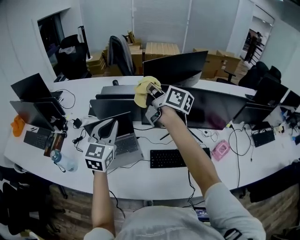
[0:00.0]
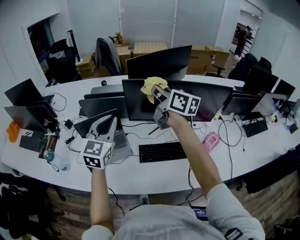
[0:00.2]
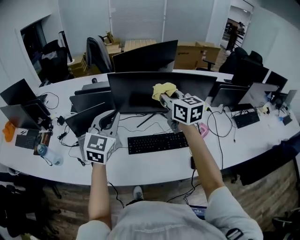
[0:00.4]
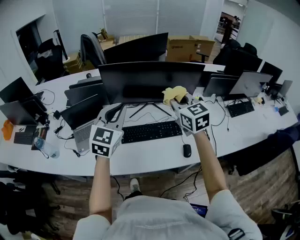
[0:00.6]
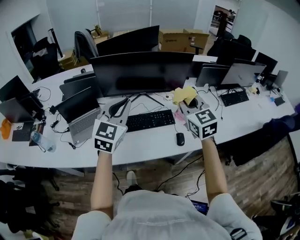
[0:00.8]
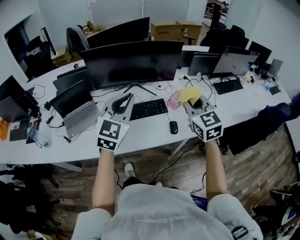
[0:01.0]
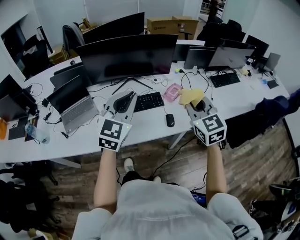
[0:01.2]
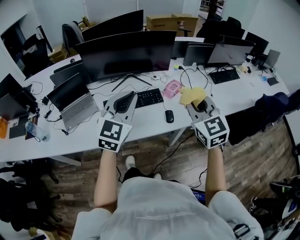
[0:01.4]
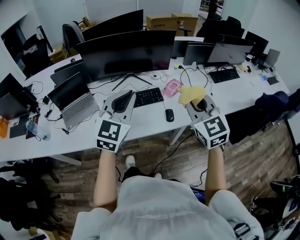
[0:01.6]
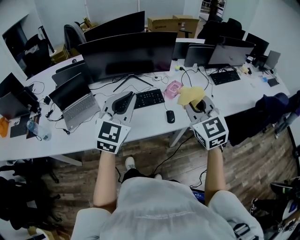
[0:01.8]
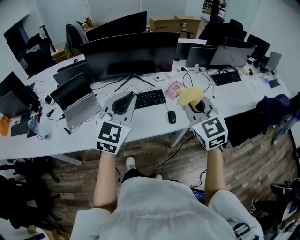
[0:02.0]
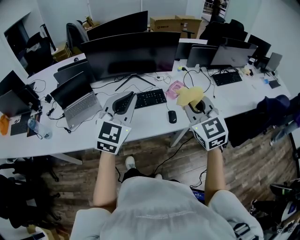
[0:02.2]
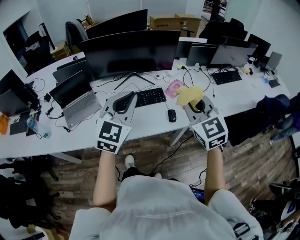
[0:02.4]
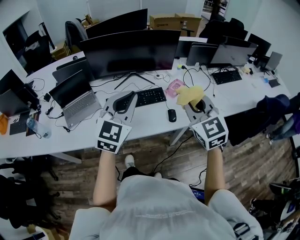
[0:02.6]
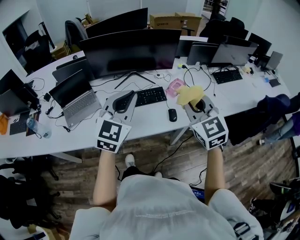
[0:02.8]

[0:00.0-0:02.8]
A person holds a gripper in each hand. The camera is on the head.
0:00.0 to 0:01.4: The two grippers travel together, approximately 50 cm. The left gripper rotates roughly 30 degrees, while the right gripper twists about 70 degrees counterclockwise, seen from behind.
0:01.4 to 0:02.8: There are only small adjustments of the grippers.

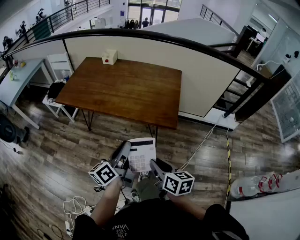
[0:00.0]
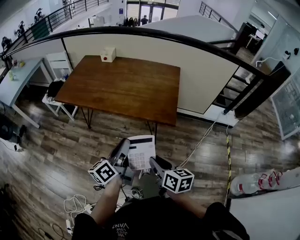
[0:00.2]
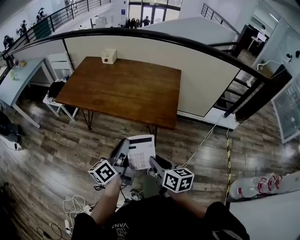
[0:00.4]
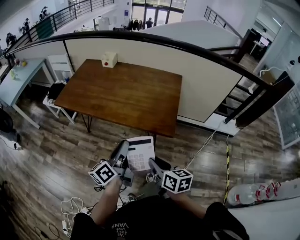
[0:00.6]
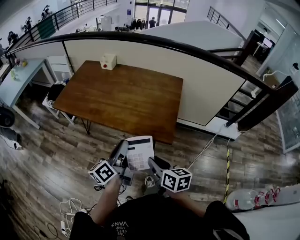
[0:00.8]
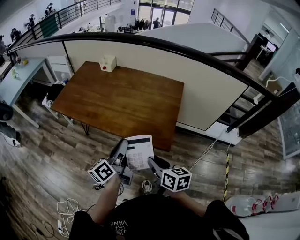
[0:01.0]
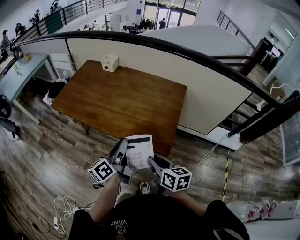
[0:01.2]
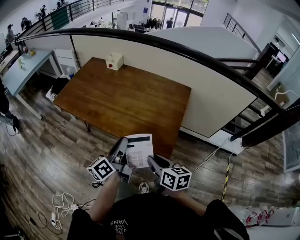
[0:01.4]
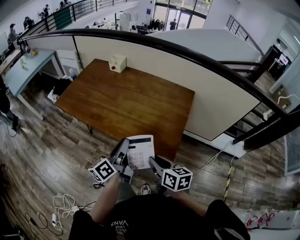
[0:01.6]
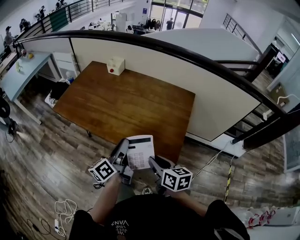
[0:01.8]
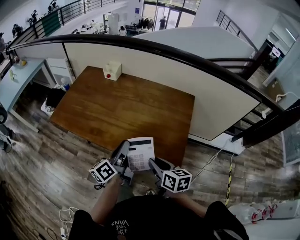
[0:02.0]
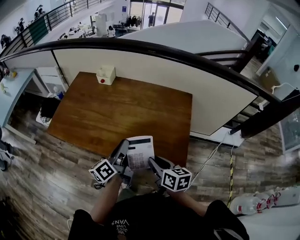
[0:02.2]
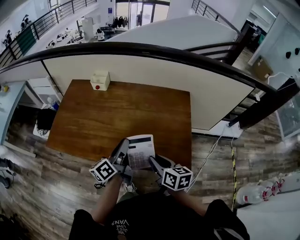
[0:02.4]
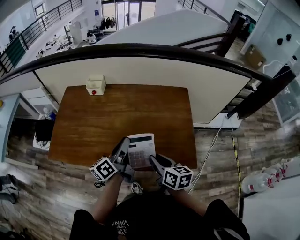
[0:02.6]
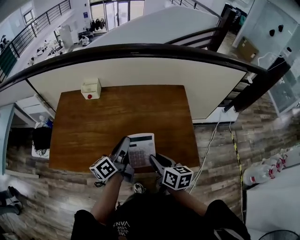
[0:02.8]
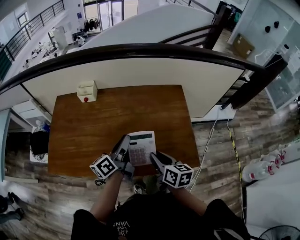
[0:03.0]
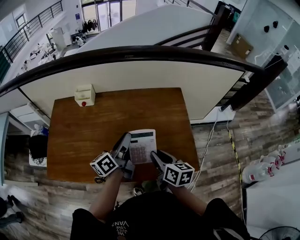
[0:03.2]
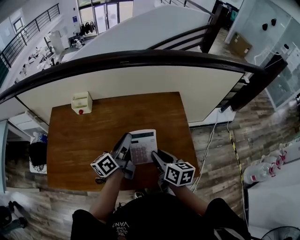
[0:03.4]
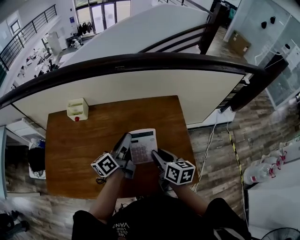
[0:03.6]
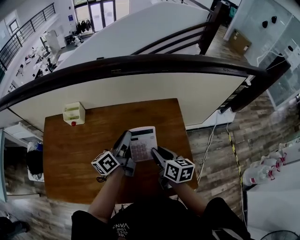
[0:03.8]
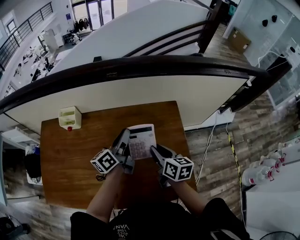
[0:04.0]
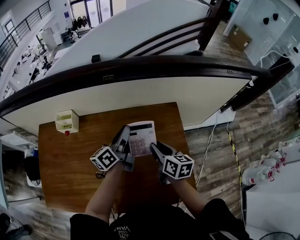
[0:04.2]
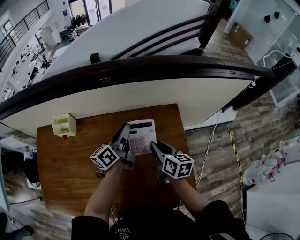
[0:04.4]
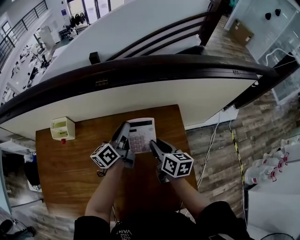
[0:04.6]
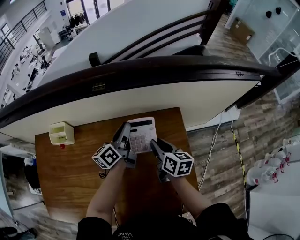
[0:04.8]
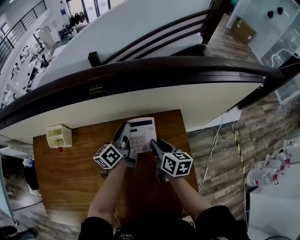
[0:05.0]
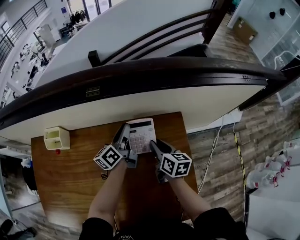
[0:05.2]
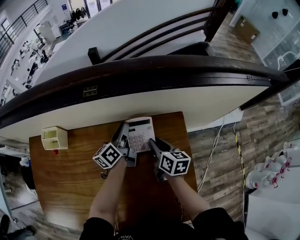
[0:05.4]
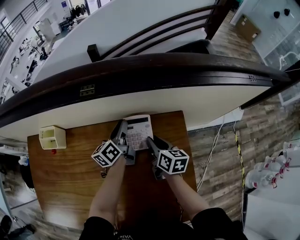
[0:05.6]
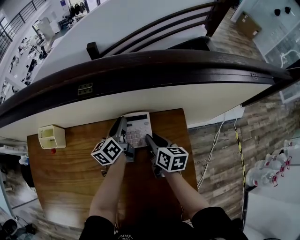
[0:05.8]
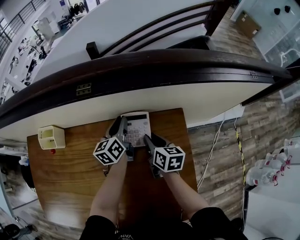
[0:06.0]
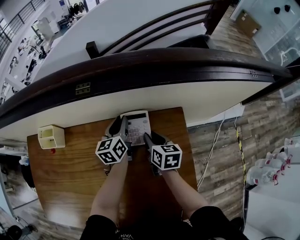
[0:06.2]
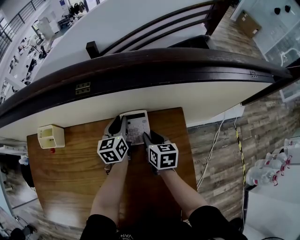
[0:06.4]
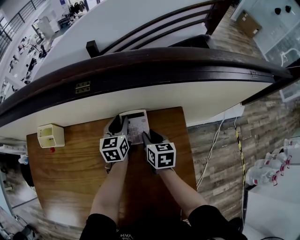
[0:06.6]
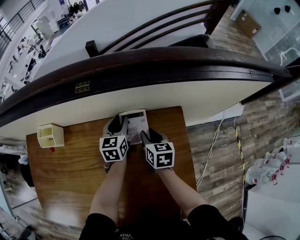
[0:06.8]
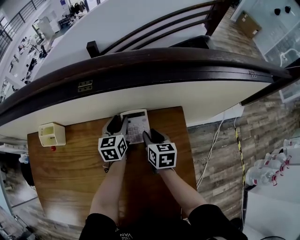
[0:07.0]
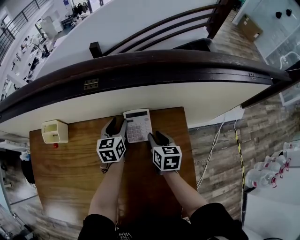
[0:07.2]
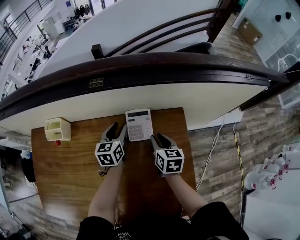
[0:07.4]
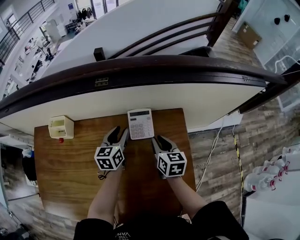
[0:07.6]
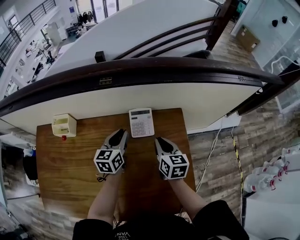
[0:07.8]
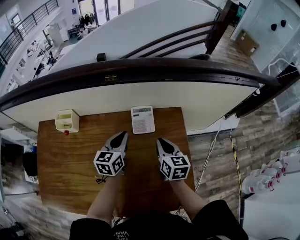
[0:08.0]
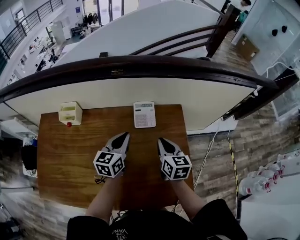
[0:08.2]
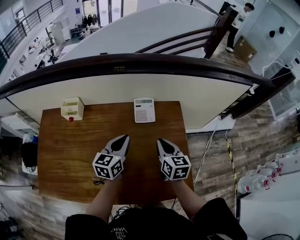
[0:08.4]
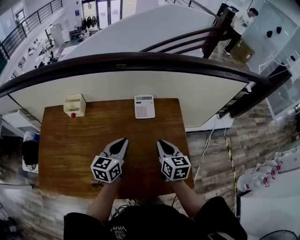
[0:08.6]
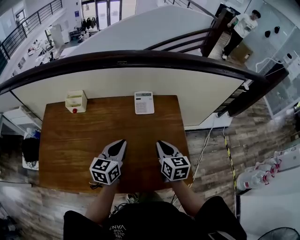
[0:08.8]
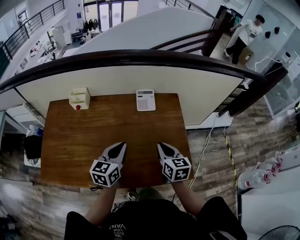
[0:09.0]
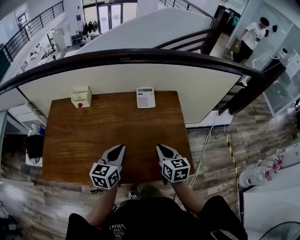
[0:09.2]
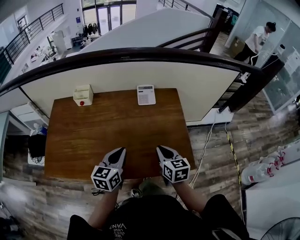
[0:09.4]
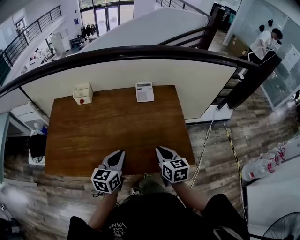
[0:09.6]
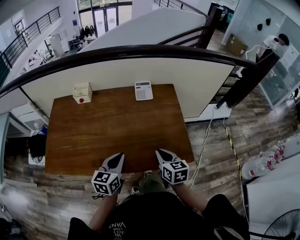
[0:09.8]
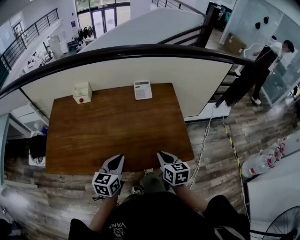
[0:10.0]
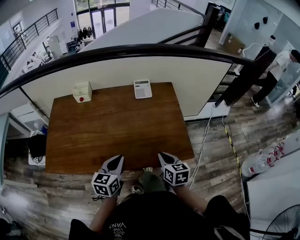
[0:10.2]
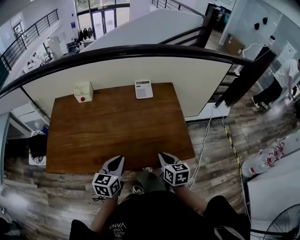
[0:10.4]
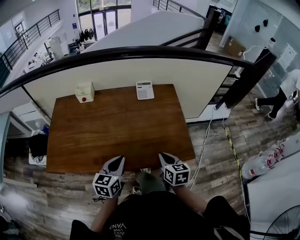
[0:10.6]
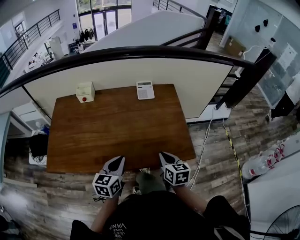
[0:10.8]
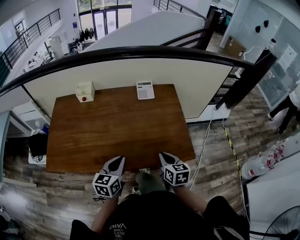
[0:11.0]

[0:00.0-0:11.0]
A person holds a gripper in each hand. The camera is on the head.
0:00.0 to 0:01.6: Both grippers travel together forward, approximately 20 cm.
0:01.6 to 0:03.2: The left gripper ends up approximately 30 cm from where it was, and swivels some 30 degrees; the right gripper shifts by about 25 cm, and turns by about 30 degrees.
0:03.2 to 0:04.8: The two grippers go approximately 30 cm forward.
0:04.8 to 0:06.2: The two grippers go about 10 cm downward and forward. The left gripper turns by approximately 30 degrees.
0:06.2 to 0:07.8: The right gripper moves upward and backward, some 10 cm, while the left gripper goes approximately 10 cm backward and upward, and opens, then closes again.
0:07.8 to 0:09.4: Both grippers travel together backward, about 30 cm.
0:09.4 to 0:11.0: The grippers both shift backward by roughly 10 cm.

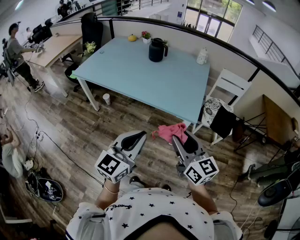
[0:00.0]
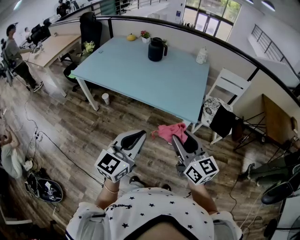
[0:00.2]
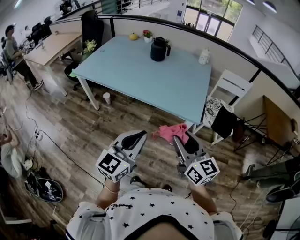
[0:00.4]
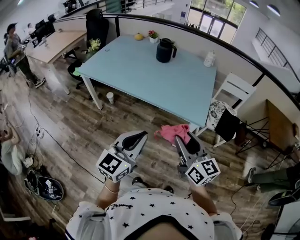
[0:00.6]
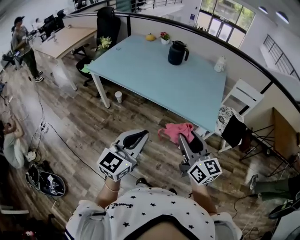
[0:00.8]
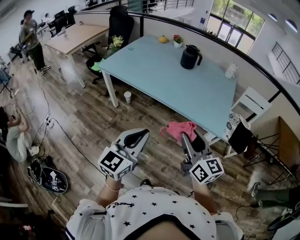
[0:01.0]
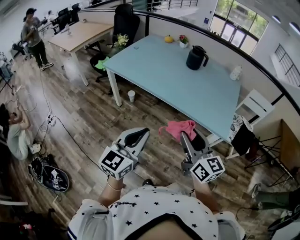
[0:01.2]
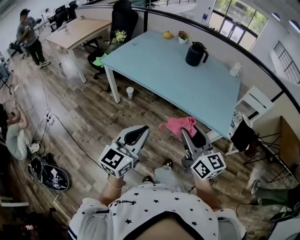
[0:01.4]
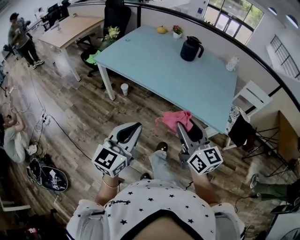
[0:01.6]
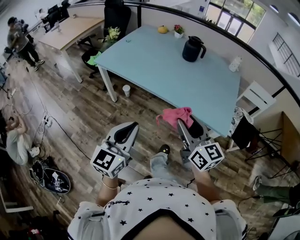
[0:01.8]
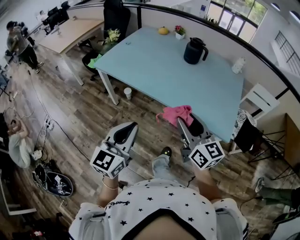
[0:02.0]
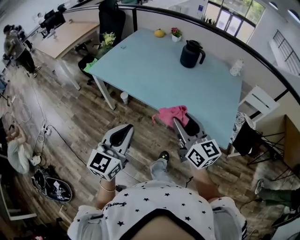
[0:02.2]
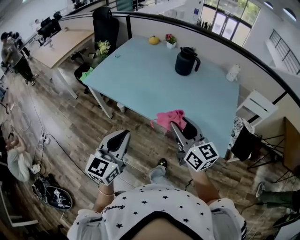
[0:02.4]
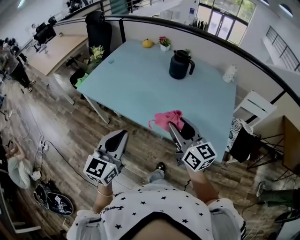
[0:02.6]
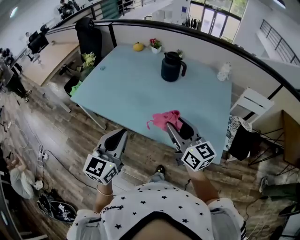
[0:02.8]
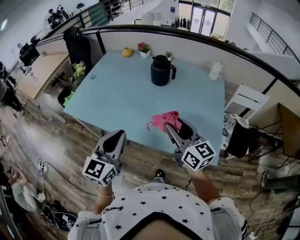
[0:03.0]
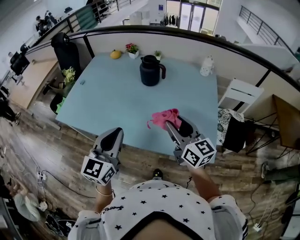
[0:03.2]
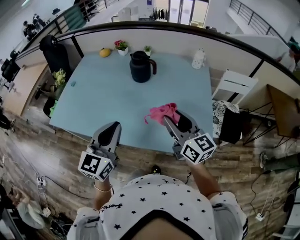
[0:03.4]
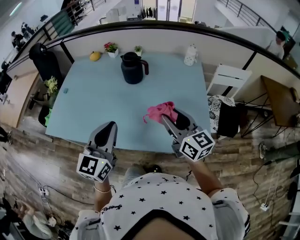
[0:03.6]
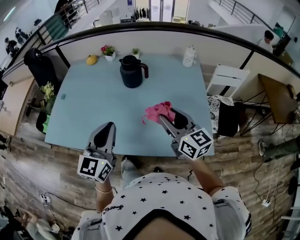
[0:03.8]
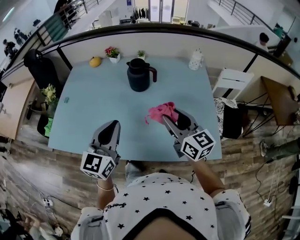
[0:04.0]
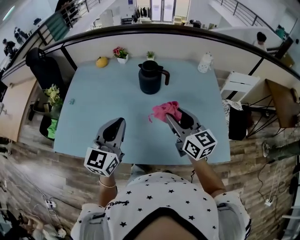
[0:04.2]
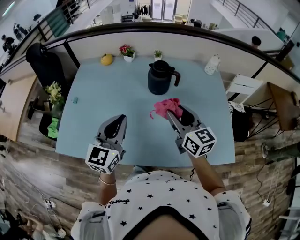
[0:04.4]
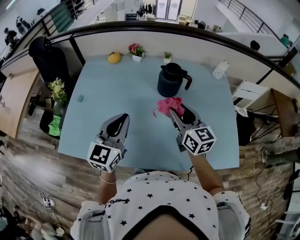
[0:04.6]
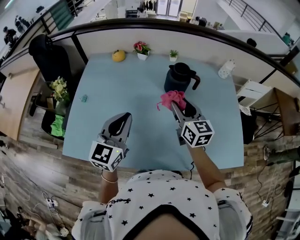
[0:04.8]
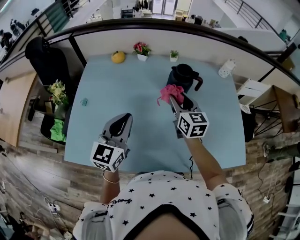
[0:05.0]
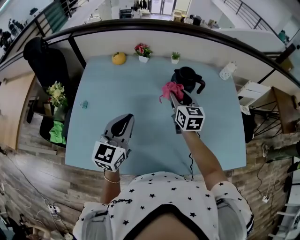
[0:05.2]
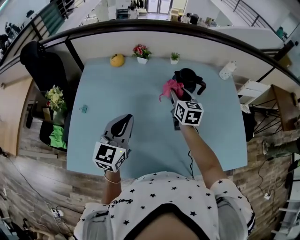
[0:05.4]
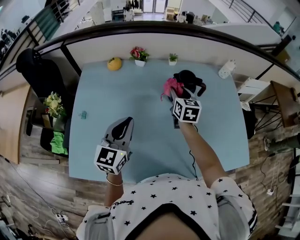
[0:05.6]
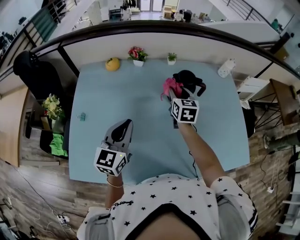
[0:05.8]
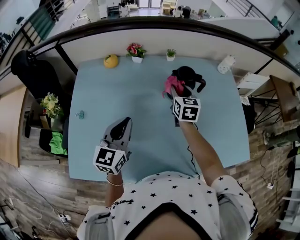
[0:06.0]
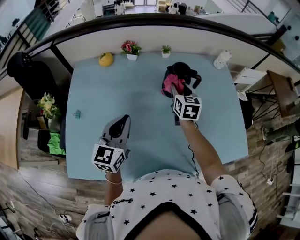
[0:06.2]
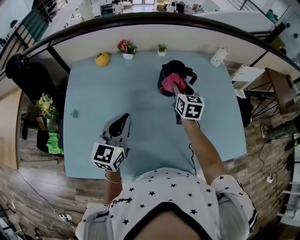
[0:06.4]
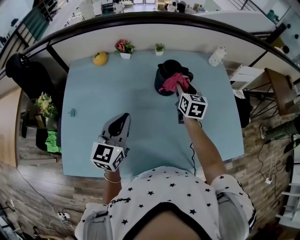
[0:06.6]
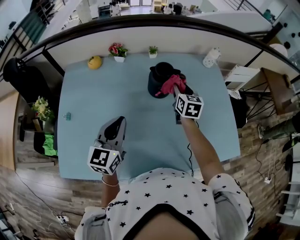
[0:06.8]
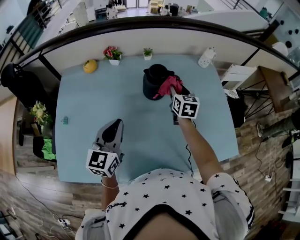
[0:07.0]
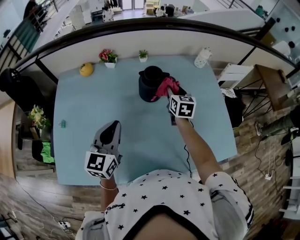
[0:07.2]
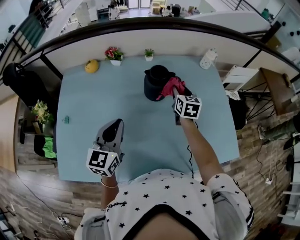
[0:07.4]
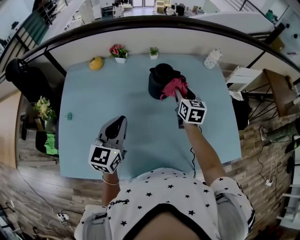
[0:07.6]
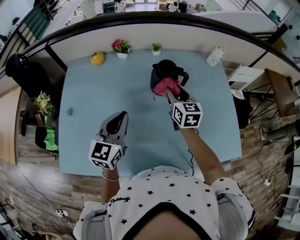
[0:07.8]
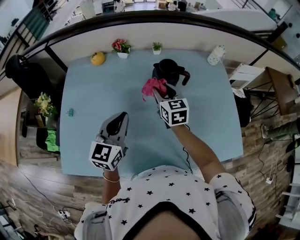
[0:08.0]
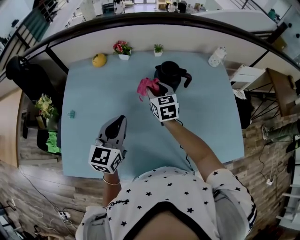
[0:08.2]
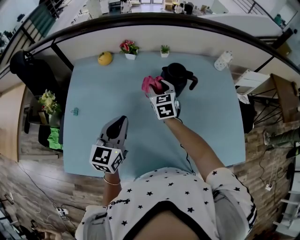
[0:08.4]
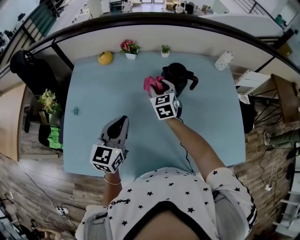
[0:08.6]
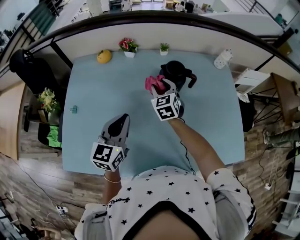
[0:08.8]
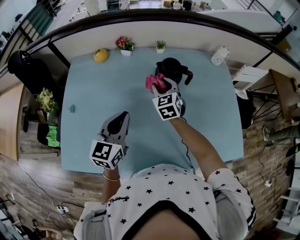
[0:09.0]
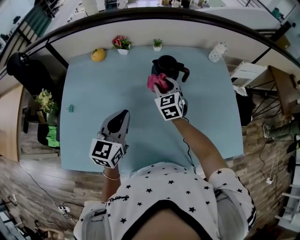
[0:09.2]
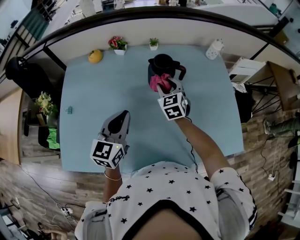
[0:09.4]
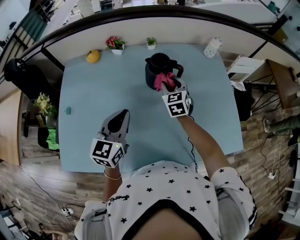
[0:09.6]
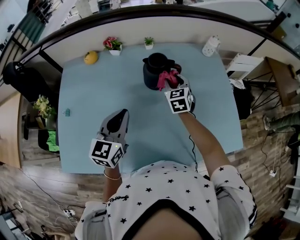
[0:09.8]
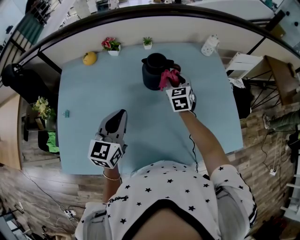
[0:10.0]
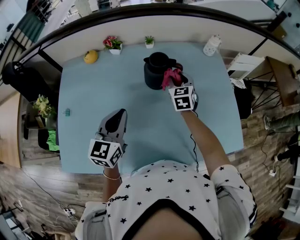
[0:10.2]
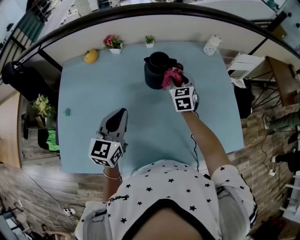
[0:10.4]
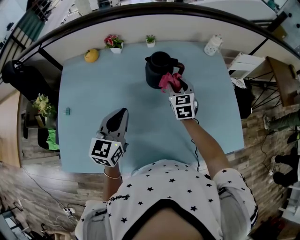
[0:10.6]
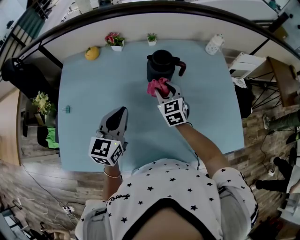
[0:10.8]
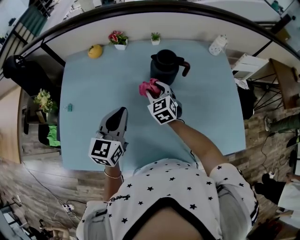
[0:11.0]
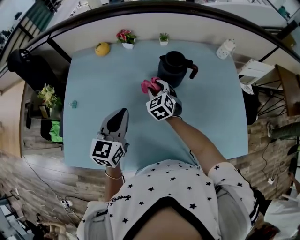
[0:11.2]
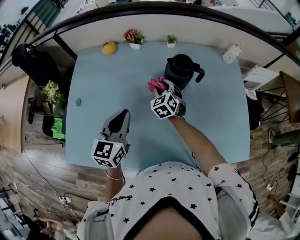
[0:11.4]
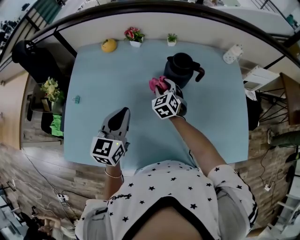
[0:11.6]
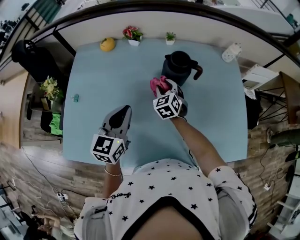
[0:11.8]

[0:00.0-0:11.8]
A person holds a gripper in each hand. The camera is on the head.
0:00.0 to 0:01.4: The two grippers go approximately 20 cm to the left.
0:01.4 to 0:03.0: The two grippers go some 30 cm forward.
0:03.0 to 0:04.4: The two grippers go some 25 cm forward and to the left.
0:04.4 to 0:06.0: The left gripper shifts roughly 20 cm to the left, forward and downward, while the right gripper travels forward, to the left and downward by approximately 25 cm, and rotates roughly 30 degrees.
0:06.0 to 0:07.4: The right gripper is displaced to the right by approximately 15 cm, while the left gripper goes some 10 cm to the right.
0:07.4 to 0:08.8: The right gripper is displaced to the left by about 20 cm, and changes its angle by about 30 degrees.
0:08.8 to 0:10.4: The right gripper travels to the right by about 15 cm.
0:10.4 to 0:11.8: The right gripper moves to the left, about 15 cm, and changes its angle by approximately 20 degrees.
